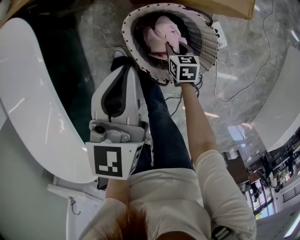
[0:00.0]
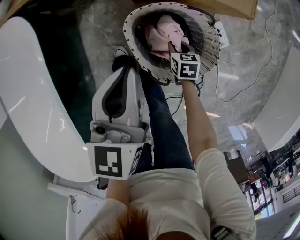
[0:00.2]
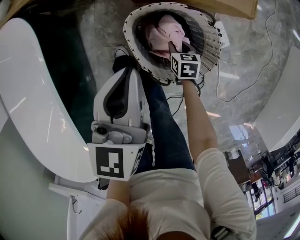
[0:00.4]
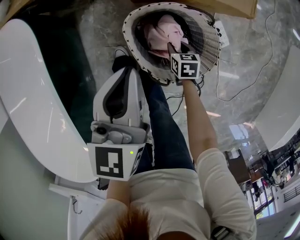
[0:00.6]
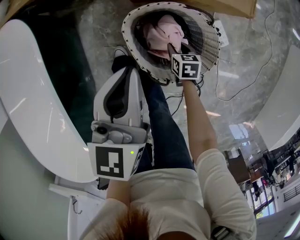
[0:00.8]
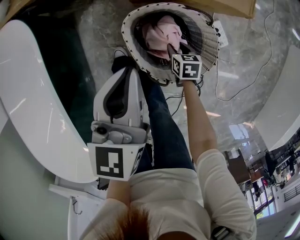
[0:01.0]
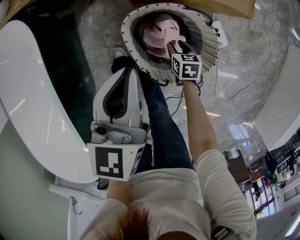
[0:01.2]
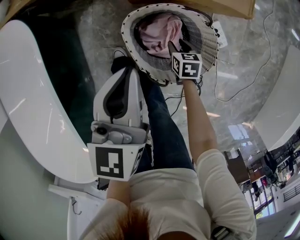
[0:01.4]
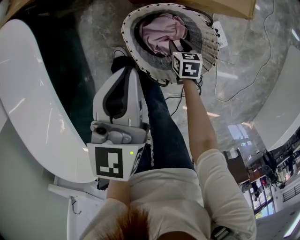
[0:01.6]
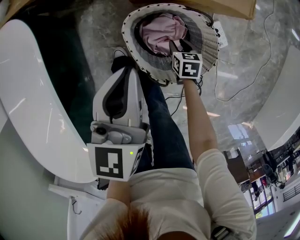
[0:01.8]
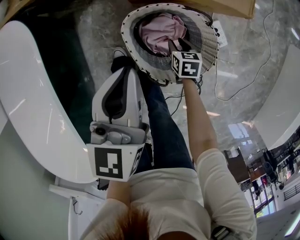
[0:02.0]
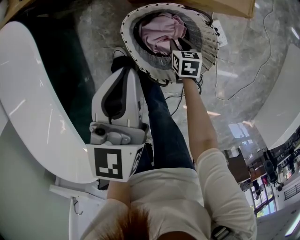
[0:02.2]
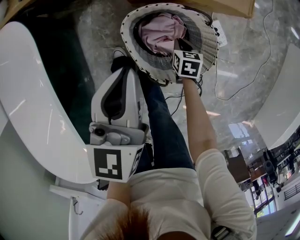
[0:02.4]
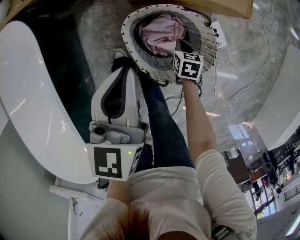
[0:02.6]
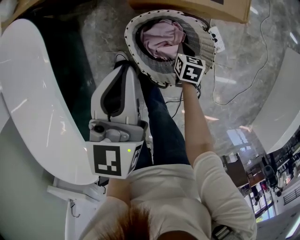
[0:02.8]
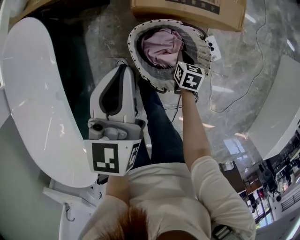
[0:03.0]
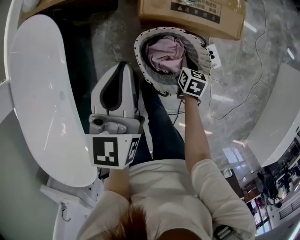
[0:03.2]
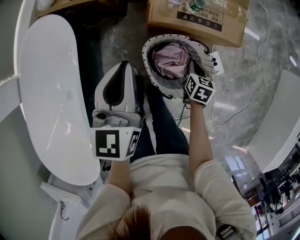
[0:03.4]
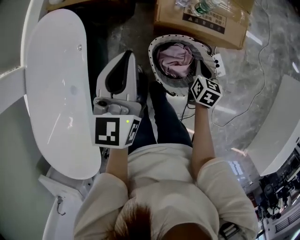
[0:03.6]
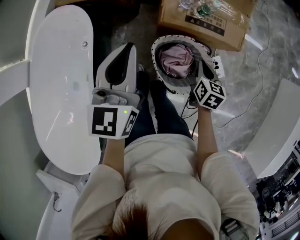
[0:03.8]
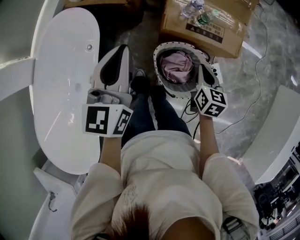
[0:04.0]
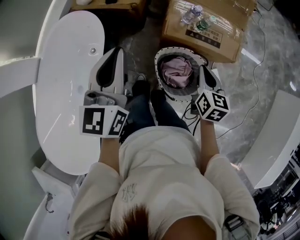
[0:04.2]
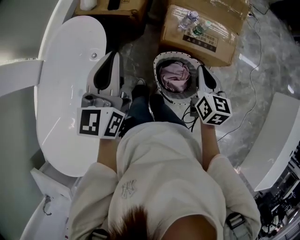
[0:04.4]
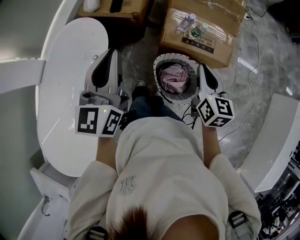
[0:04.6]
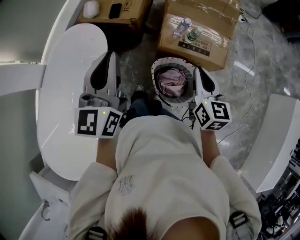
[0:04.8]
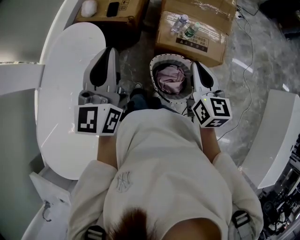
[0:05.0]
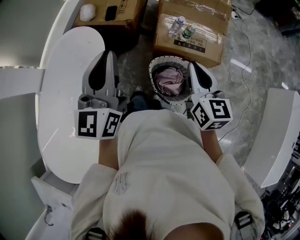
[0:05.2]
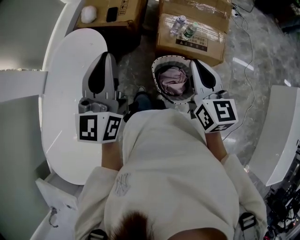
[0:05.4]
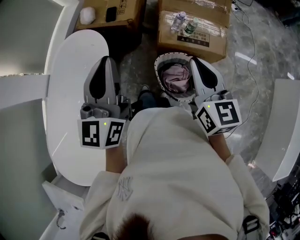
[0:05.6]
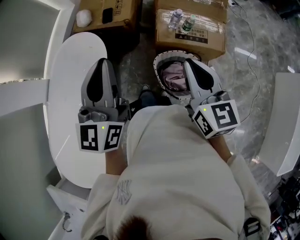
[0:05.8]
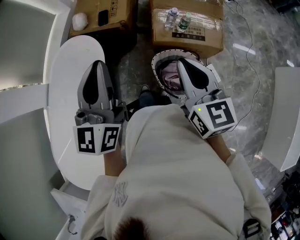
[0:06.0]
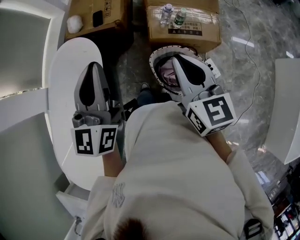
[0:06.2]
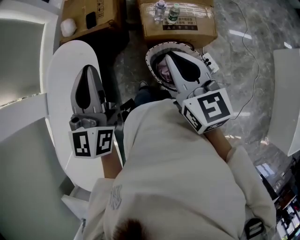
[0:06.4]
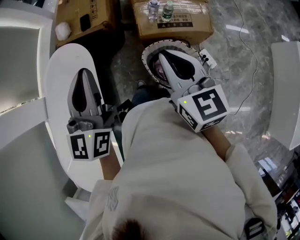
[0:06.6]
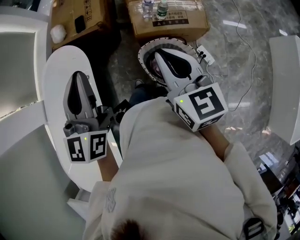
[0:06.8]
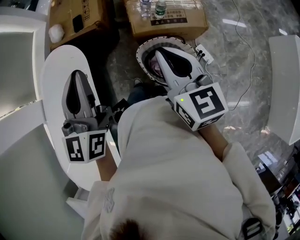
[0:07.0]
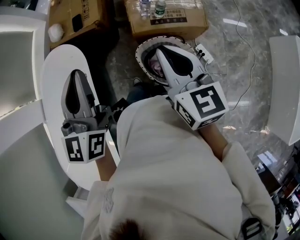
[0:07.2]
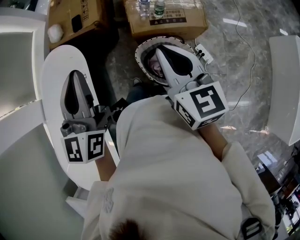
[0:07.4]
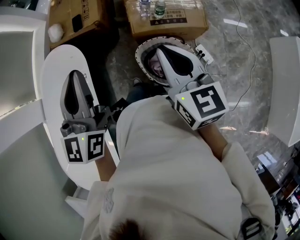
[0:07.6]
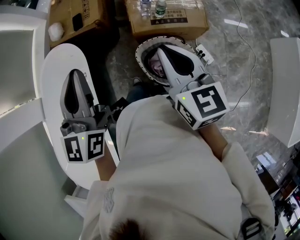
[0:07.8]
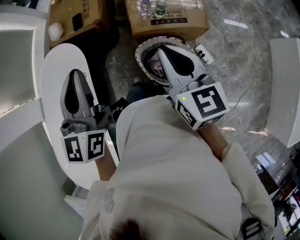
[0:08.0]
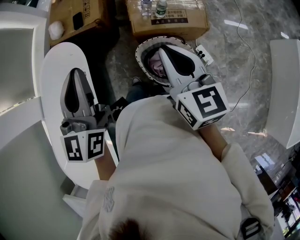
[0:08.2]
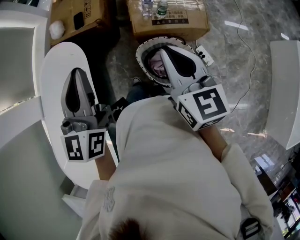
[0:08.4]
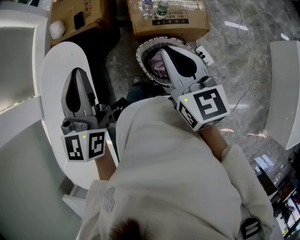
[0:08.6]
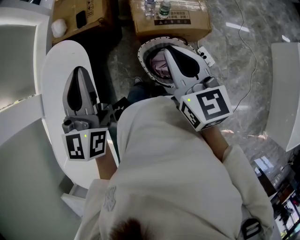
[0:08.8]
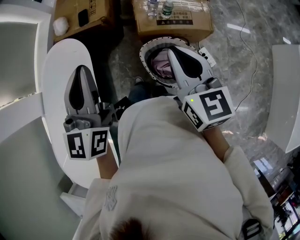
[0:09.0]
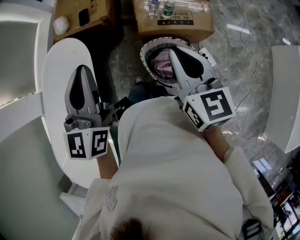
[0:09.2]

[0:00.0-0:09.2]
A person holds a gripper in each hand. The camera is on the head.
0:00.0 to 0:01.6: The grippers move only a little.
0:01.6 to 0:03.0: The grippers both shift upward by roughly 5 cm.
0:03.0 to 0:04.6: The left gripper goes about 30 cm upward and to the left, and turns by about 20 degrees. The right gripper is displaced upward by some 50 cm, and tips its fingers upward by about 40 degrees.
0:04.6 to 0:06.2: The left gripper ends up approximately 5 cm from where it was, while the right gripper shifts approximately 15 cm upward, to the left and backward.
0:06.2 to 0:07.6: The grippers move only a little.
0:07.6 to 0:09.2: Both grippers stay put.

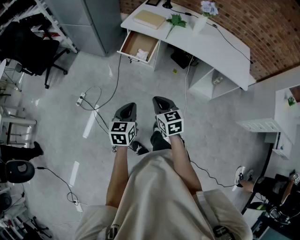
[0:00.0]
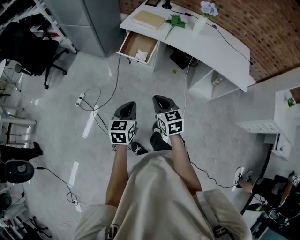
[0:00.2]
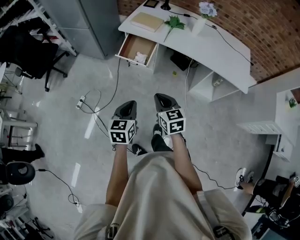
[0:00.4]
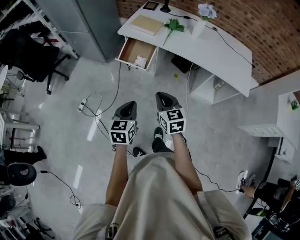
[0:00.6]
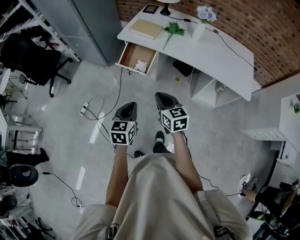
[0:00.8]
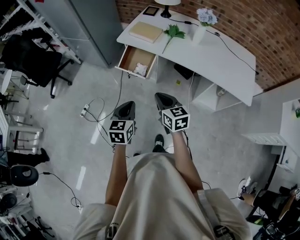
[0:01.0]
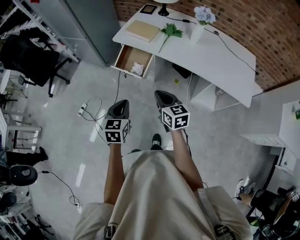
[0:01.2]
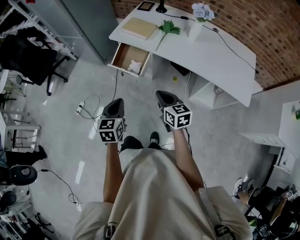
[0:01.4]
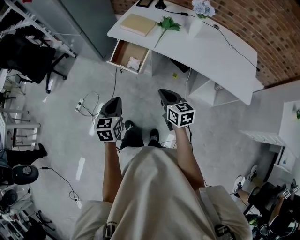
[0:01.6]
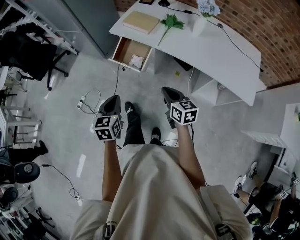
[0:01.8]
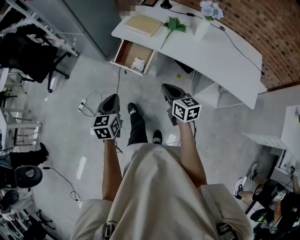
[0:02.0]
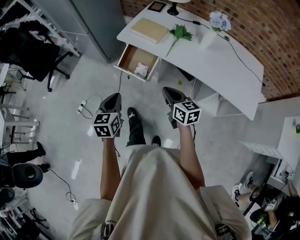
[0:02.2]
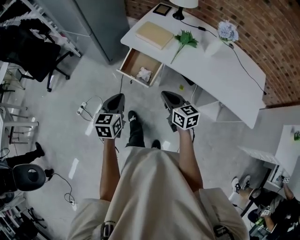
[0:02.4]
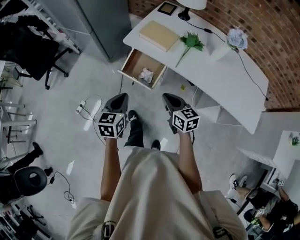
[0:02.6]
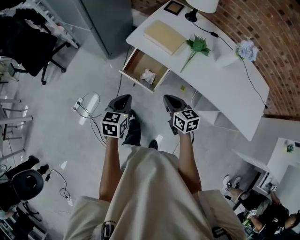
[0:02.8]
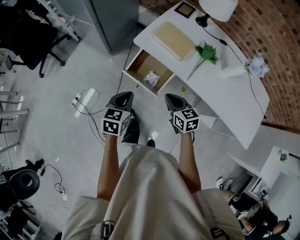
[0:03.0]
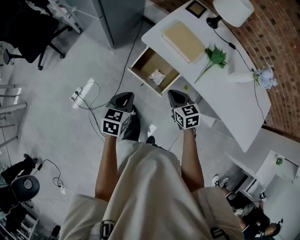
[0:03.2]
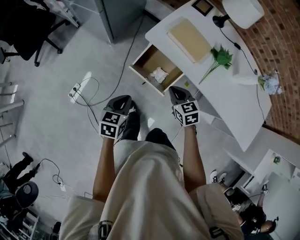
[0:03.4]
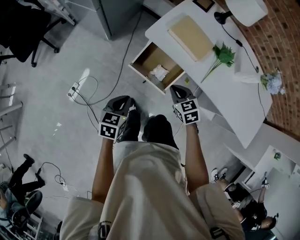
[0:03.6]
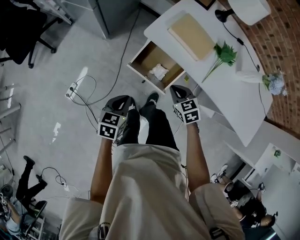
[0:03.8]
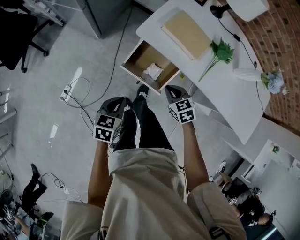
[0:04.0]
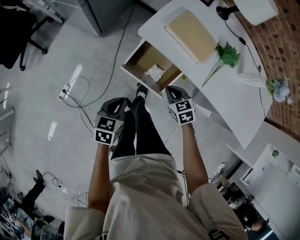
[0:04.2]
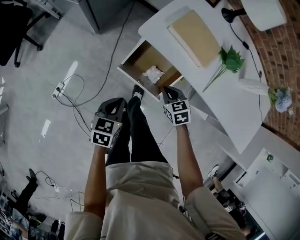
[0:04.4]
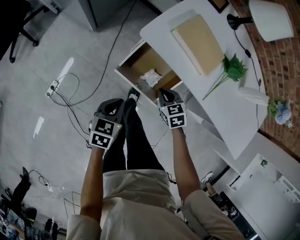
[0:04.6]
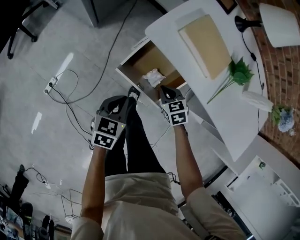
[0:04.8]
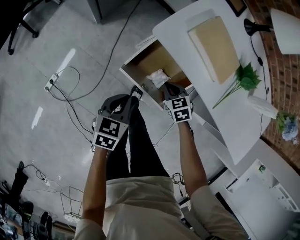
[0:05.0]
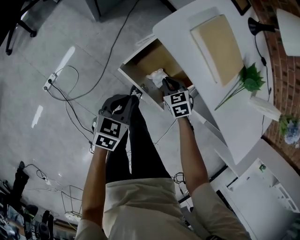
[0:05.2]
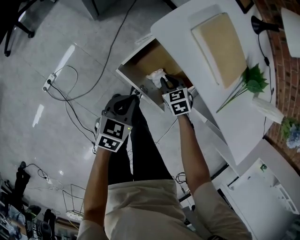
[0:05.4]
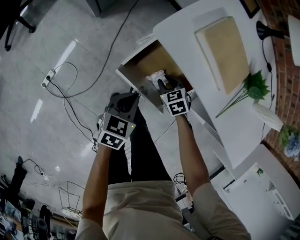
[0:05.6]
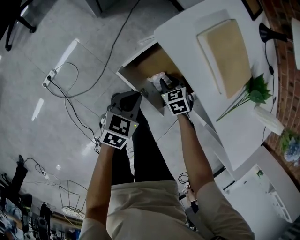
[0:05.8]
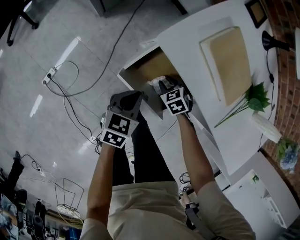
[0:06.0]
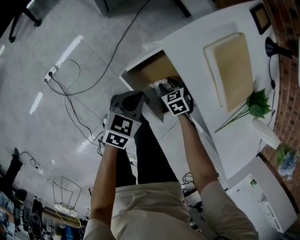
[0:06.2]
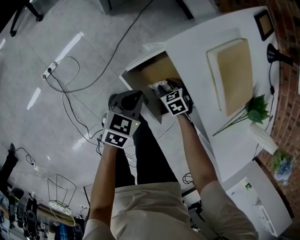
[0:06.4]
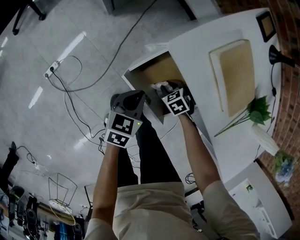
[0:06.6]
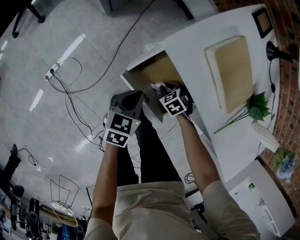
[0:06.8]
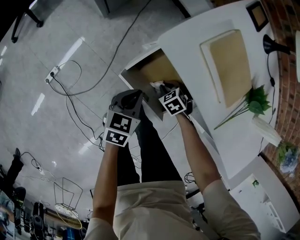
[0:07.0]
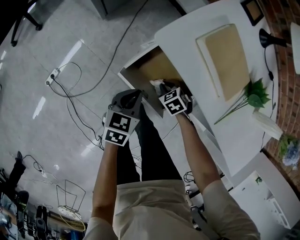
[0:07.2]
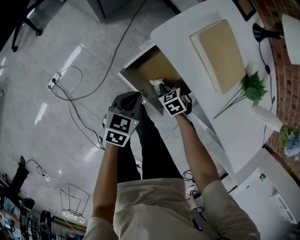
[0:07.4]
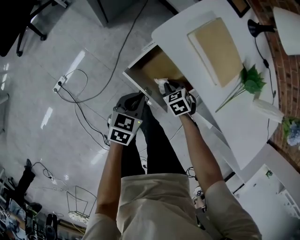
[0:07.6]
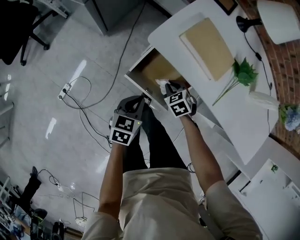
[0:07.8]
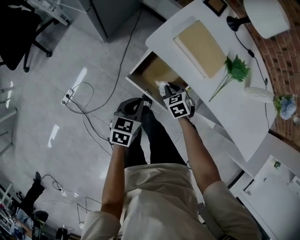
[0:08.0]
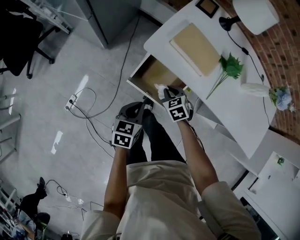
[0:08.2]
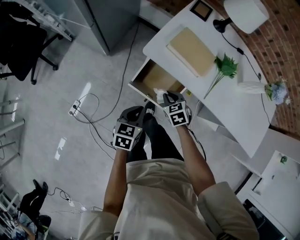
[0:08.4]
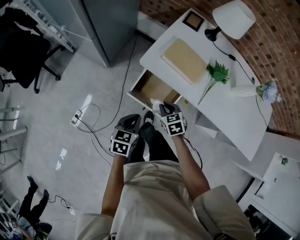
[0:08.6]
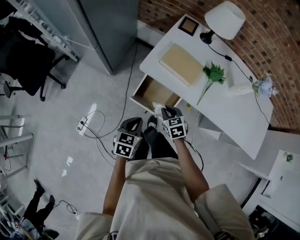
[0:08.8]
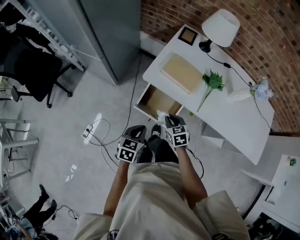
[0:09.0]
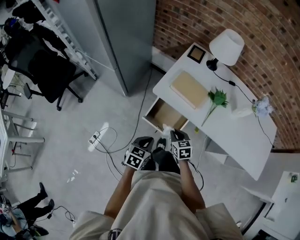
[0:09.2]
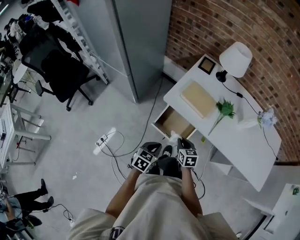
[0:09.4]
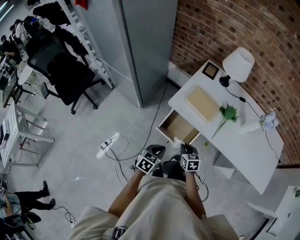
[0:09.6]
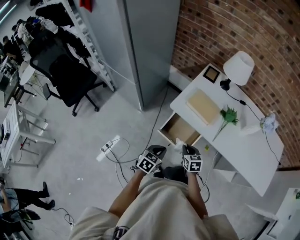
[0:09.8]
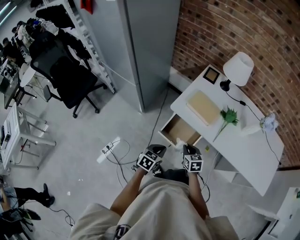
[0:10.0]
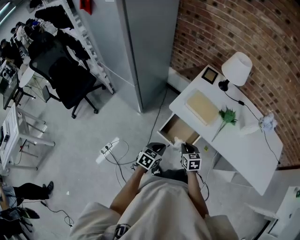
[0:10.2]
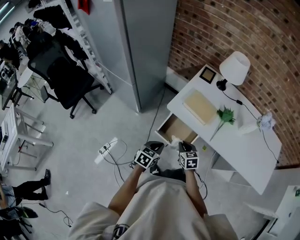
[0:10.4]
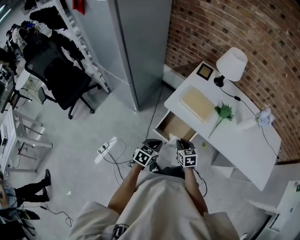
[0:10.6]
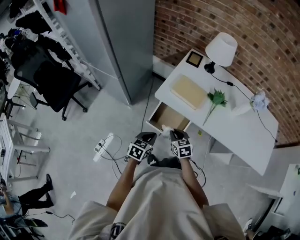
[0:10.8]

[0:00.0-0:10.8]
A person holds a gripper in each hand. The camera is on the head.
0:00.0 to 0:01.6: The left gripper goes some 20 cm forward and to the right; the right gripper is displaced to the right and forward by roughly 25 cm.
0:01.6 to 0:03.0: The right gripper heads forward and to the left, covering some 30 cm. The left gripper moves forward, roughly 25 cm.
0:03.0 to 0:04.6: The left gripper moves downward, approximately 20 cm; the right gripper goes some 25 cm downward and forward, and rotates roughly 30 degrees.
0:04.6 to 0:06.2: The left gripper is displaced forward and downward by about 15 cm. Meanwhile the right gripper moves downward and forward, roughly 20 cm, changes its angle by some 30 degrees, and opens.
0:06.2 to 0:07.8: The left gripper travels upward by about 5 cm. The right gripper travels upward by about 15 cm, and closes.
0:07.8 to 0:09.2: Both grippers travel together upward and backward, roughly 20 cm. The right gripper changes its angle by some 40 degrees.
0:09.2 to 0:10.8: The grippers stay close to where they were, moving slightly.

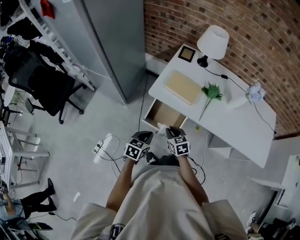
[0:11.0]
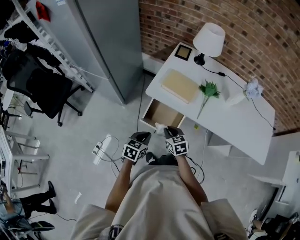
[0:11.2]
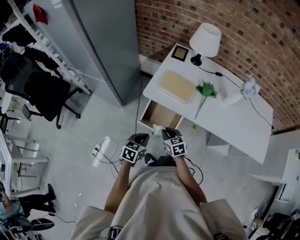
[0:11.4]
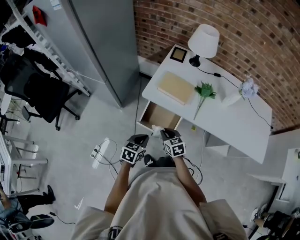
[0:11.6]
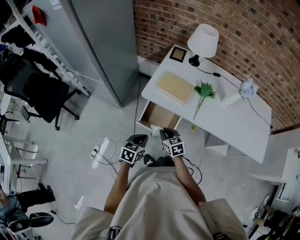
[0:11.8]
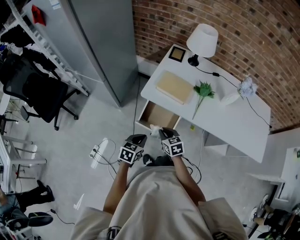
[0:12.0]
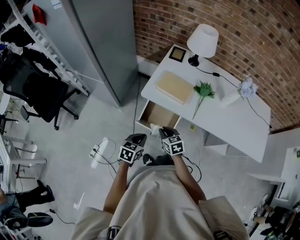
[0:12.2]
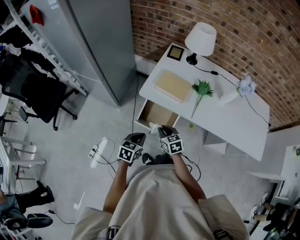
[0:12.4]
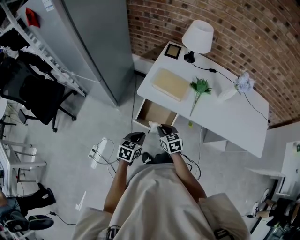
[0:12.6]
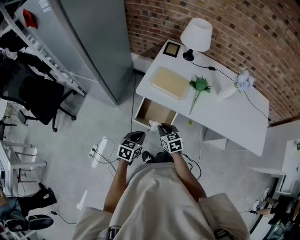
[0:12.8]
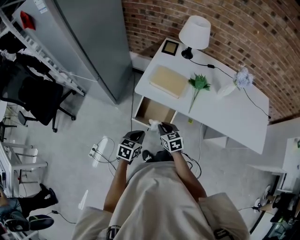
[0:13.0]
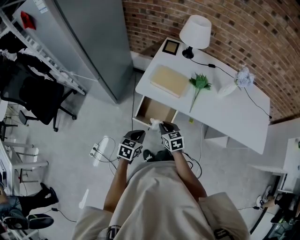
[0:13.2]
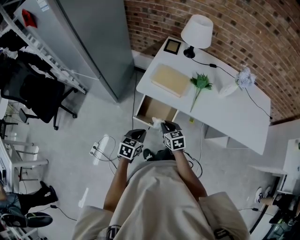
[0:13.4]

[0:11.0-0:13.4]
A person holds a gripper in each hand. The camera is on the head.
0:11.0 to 0:12.2: The two grippers keep their place.
0:12.2 to 0:13.4: The grippers make only small movements.

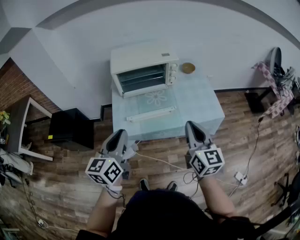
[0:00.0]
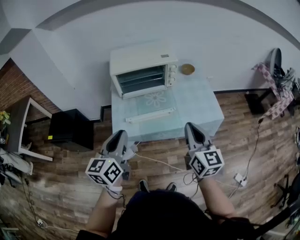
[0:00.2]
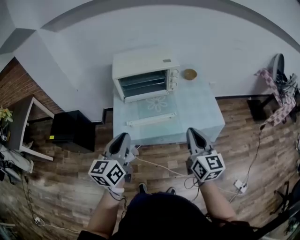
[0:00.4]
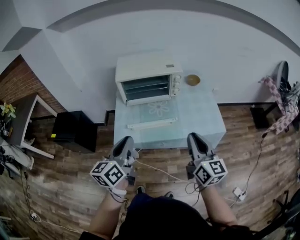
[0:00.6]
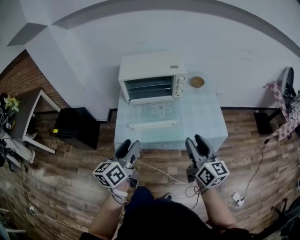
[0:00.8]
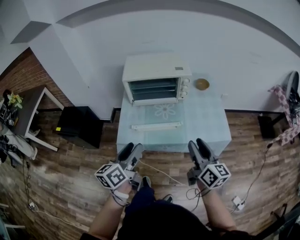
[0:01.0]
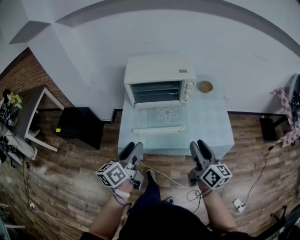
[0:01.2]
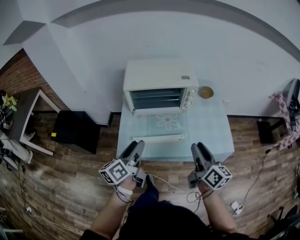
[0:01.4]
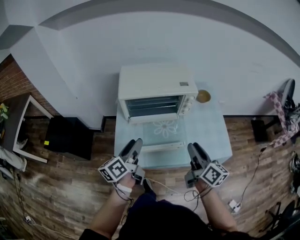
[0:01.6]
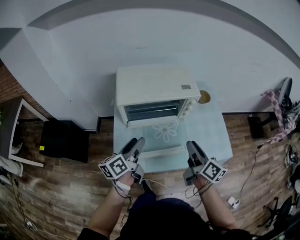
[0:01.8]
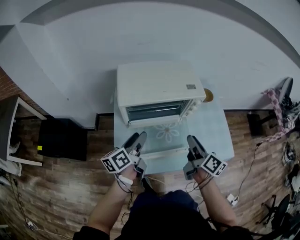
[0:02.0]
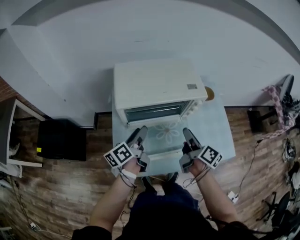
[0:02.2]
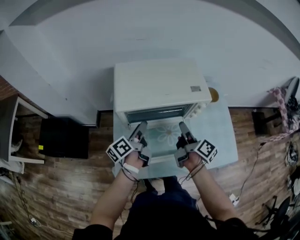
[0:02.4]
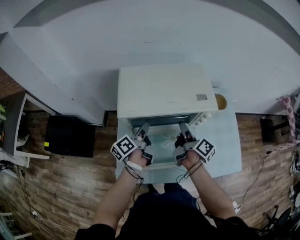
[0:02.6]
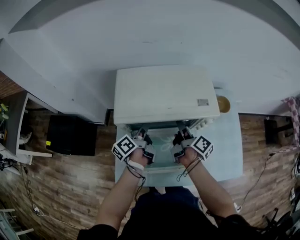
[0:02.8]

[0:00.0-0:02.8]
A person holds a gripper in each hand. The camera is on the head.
0:00.0 to 0:01.4: Both grippers travel together forward and downward, approximately 15 cm. The right gripper swivels roughly 30 degrees, and opens its fingers, while the left gripper rotates approximately 30 degrees, and opens up.
0:01.4 to 0:02.8: The left gripper moves forward, roughly 35 cm, and swivels about 30 degrees. The right gripper is displaced forward and downward by roughly 40 cm, and swivels some 40 degrees.
